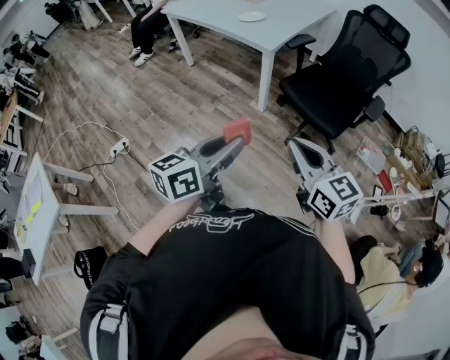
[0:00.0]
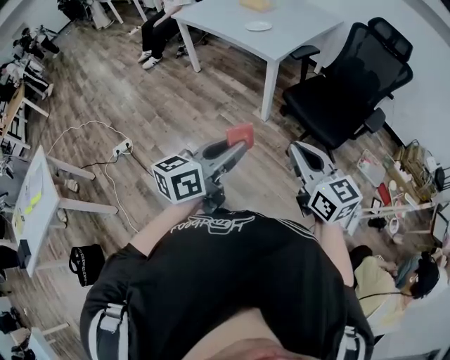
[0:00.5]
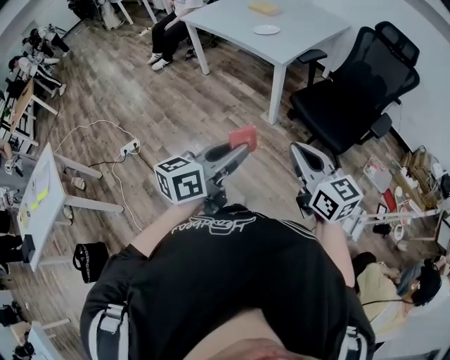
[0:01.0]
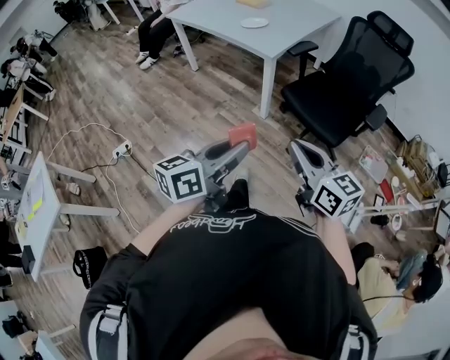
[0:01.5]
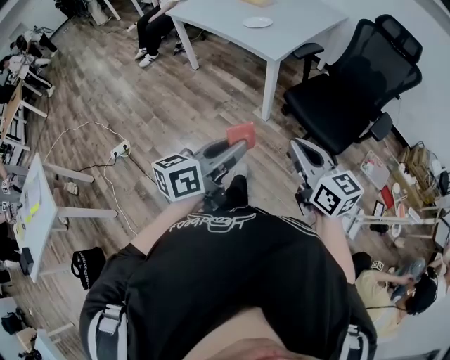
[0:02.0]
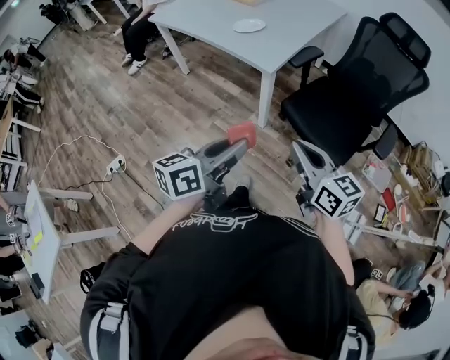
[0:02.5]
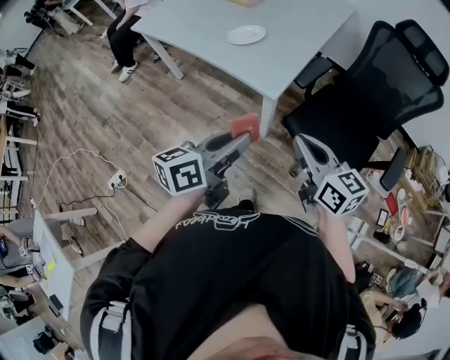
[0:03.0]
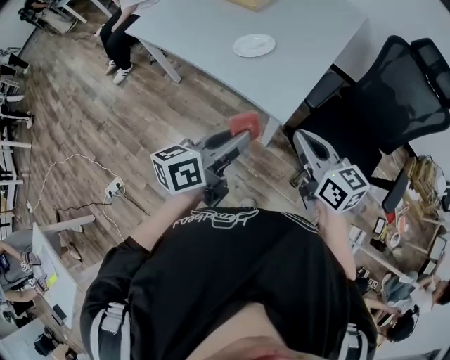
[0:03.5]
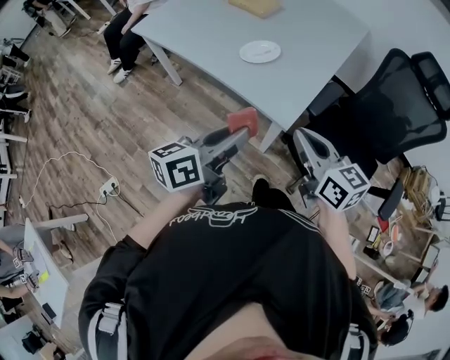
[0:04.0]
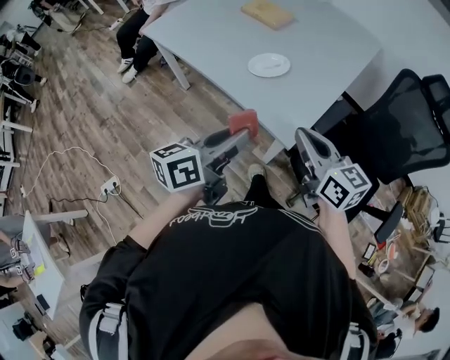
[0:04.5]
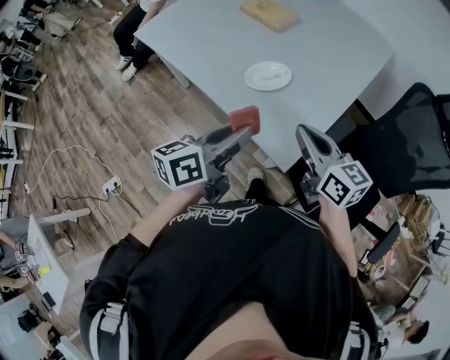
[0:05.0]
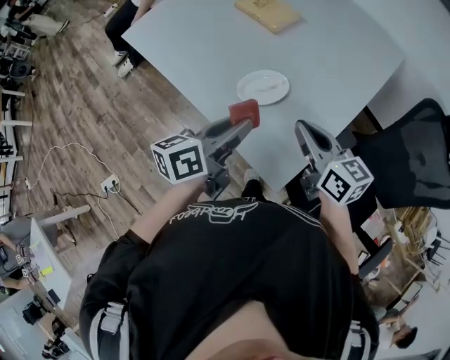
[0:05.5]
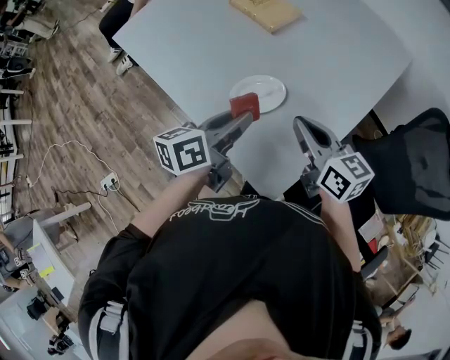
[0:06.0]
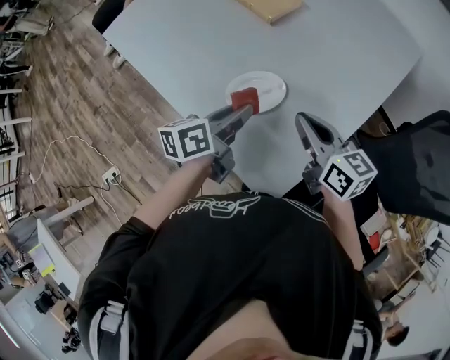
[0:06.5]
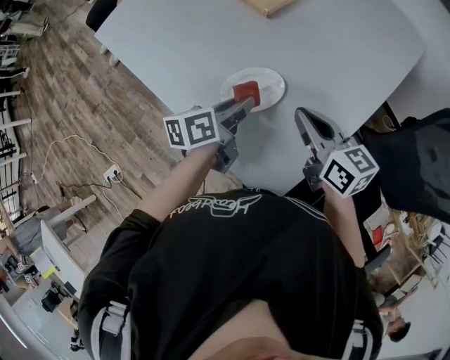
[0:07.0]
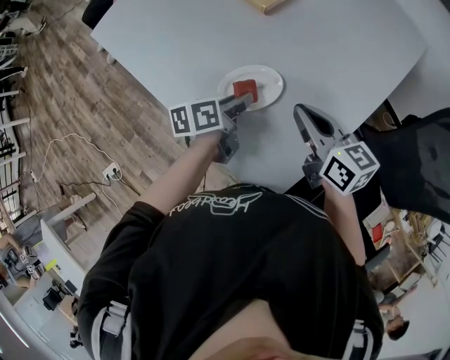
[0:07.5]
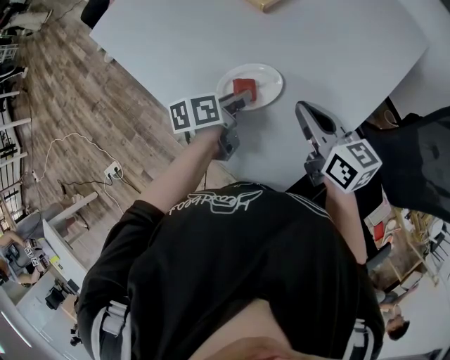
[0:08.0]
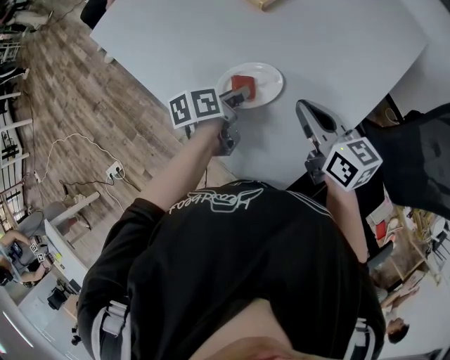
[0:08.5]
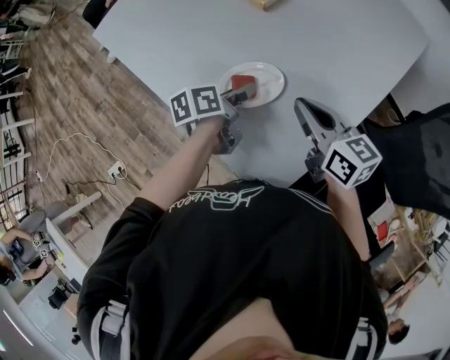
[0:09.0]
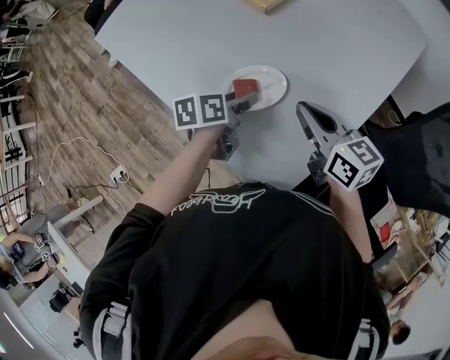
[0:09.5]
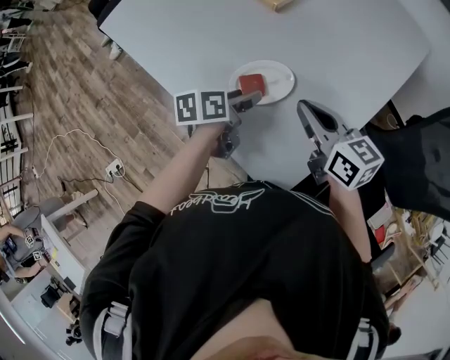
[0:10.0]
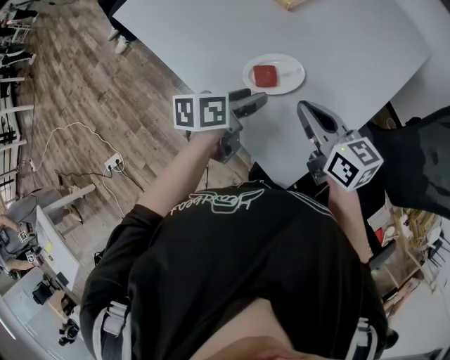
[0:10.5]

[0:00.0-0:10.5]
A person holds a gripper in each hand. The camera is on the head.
0:00.0 to 0:02.0: The grippers both shift forward by roughly 5 cm.
0:02.0 to 0:04.0: The two grippers travel together, forward, about 50 cm.
0:04.0 to 0:06.5: The two grippers go some 35 cm forward. The left gripper turns by approximately 20 degrees.
0:06.5 to 0:08.5: The left gripper goes approximately 10 cm downward and forward, and swivels about 20 degrees.
0:08.5 to 0:10.5: The left gripper is displaced upward and backward by about 10 cm, and opens, while the right gripper shifts roughly 5 cm to the left.

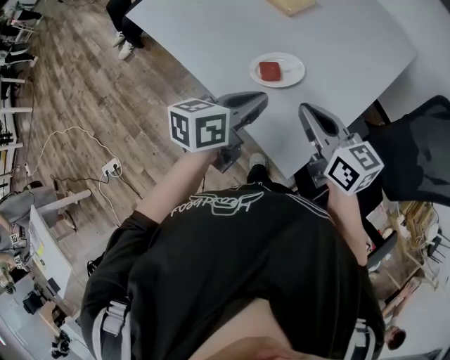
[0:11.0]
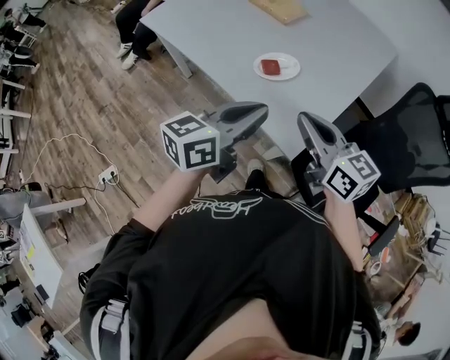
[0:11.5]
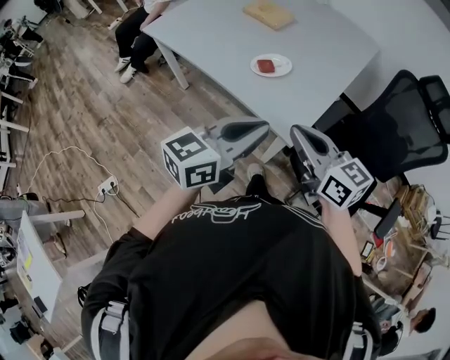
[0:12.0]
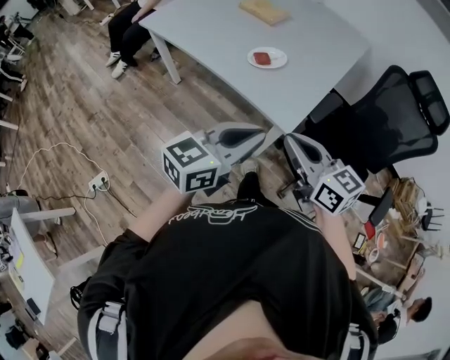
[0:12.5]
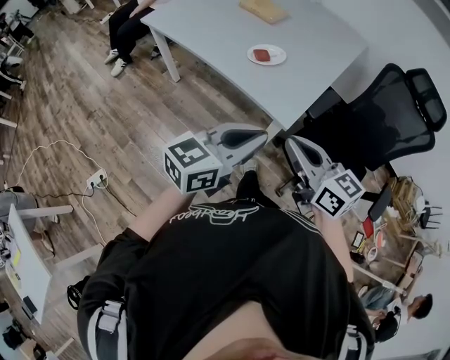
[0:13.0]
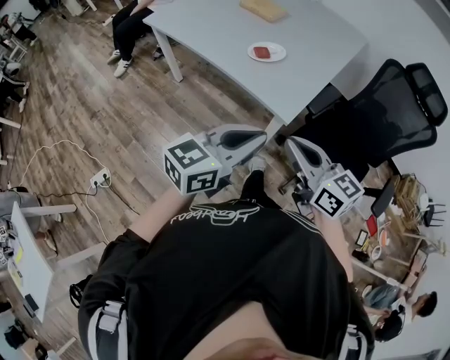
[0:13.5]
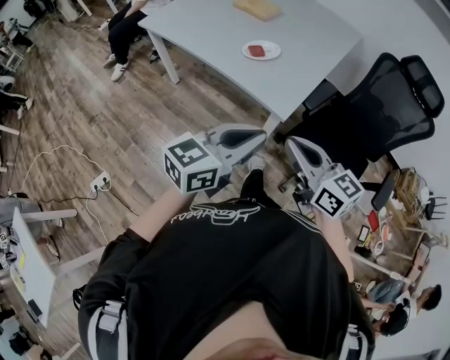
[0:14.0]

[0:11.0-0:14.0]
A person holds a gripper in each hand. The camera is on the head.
0:11.0 to 0:12.5: The two grippers go about 30 cm backward. The left gripper turns by approximately 30 degrees.
0:12.5 to 0:14.0: The grippers both shift backward by some 5 cm.

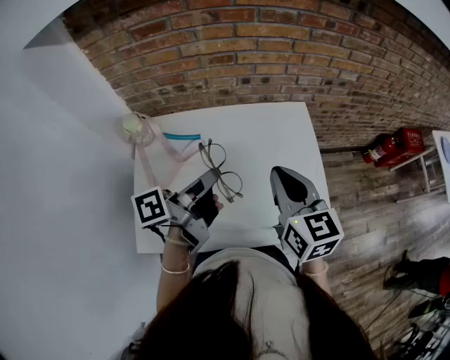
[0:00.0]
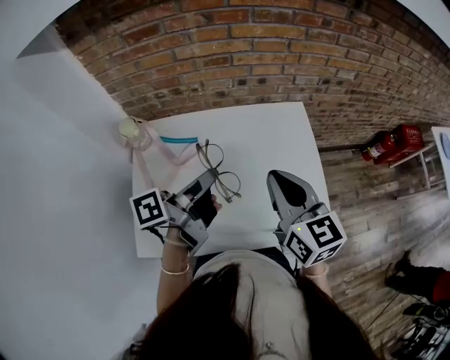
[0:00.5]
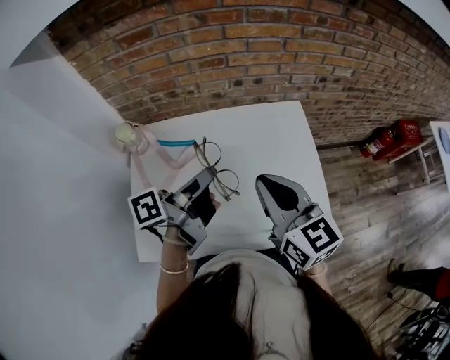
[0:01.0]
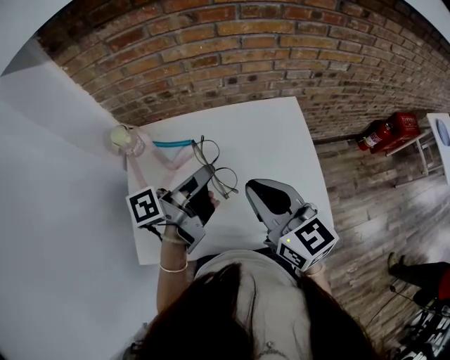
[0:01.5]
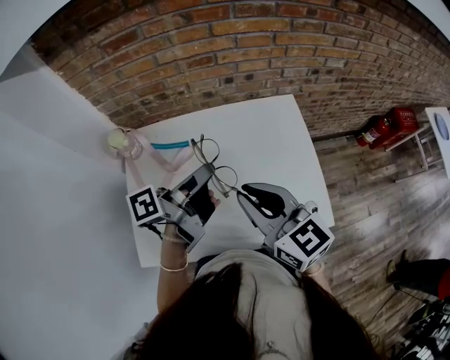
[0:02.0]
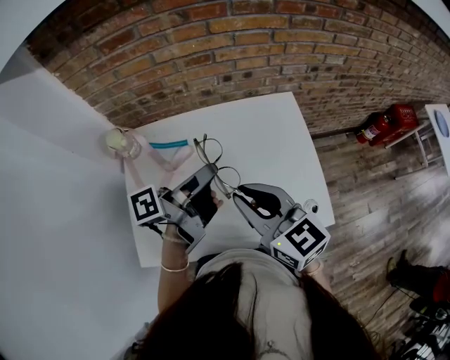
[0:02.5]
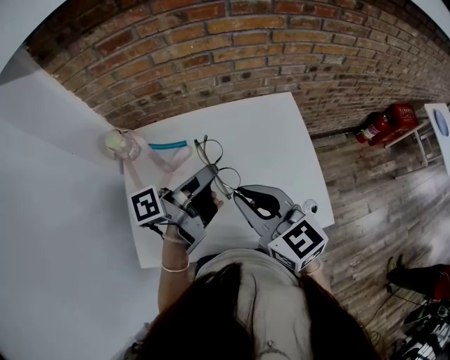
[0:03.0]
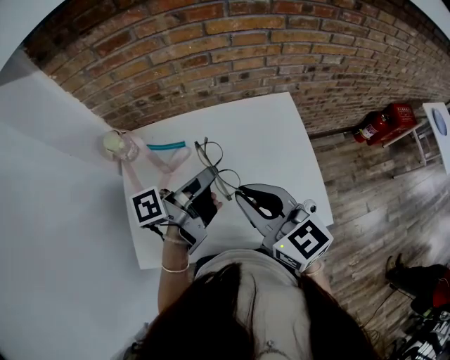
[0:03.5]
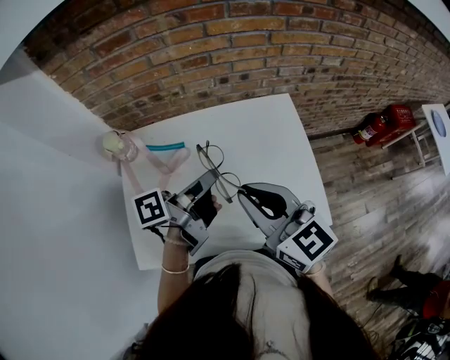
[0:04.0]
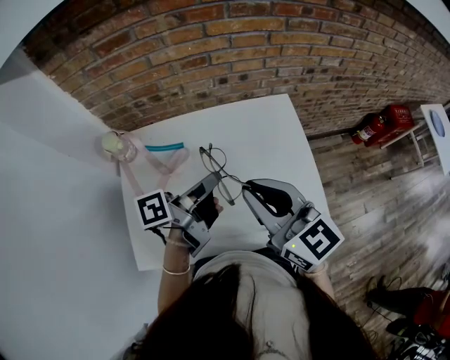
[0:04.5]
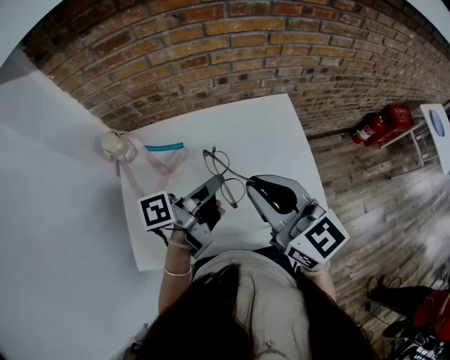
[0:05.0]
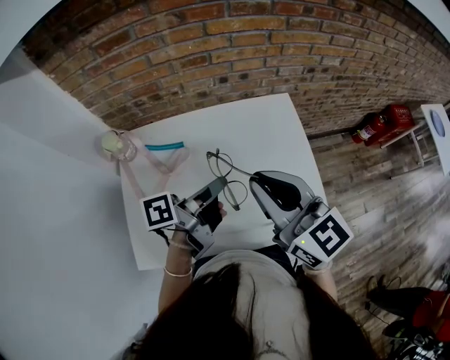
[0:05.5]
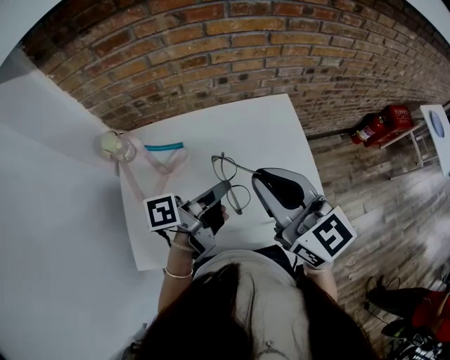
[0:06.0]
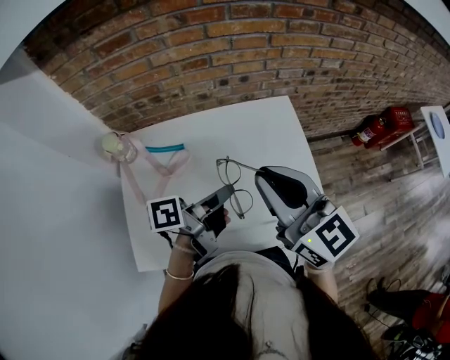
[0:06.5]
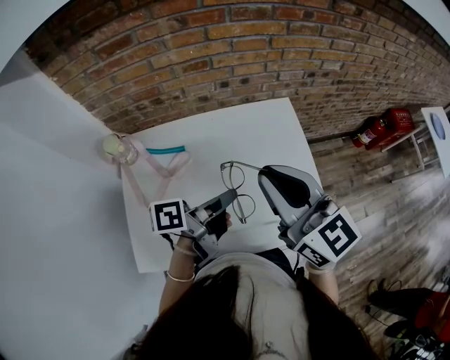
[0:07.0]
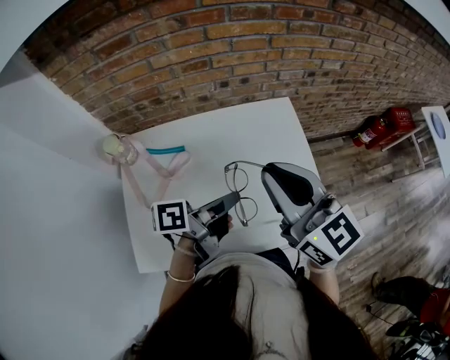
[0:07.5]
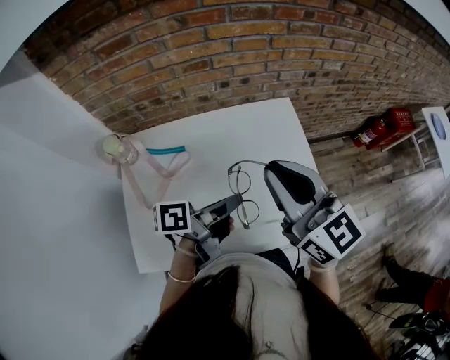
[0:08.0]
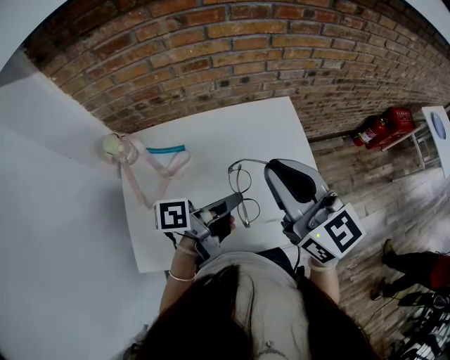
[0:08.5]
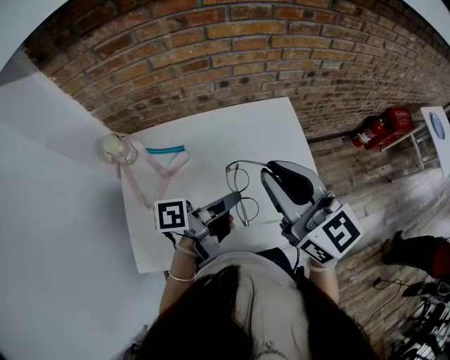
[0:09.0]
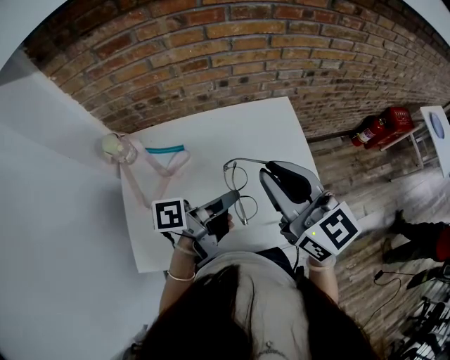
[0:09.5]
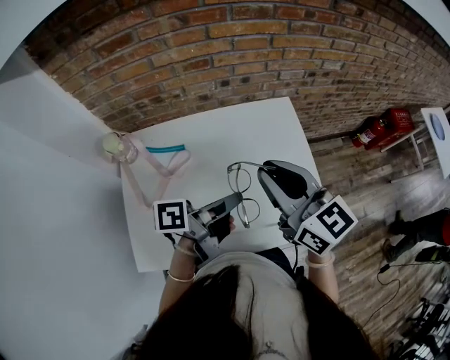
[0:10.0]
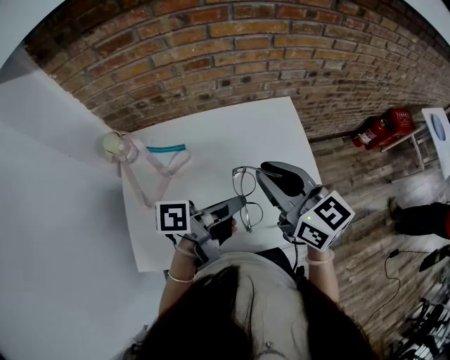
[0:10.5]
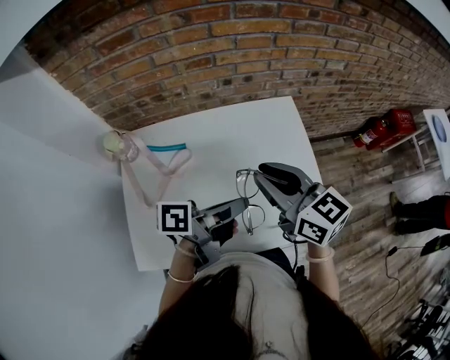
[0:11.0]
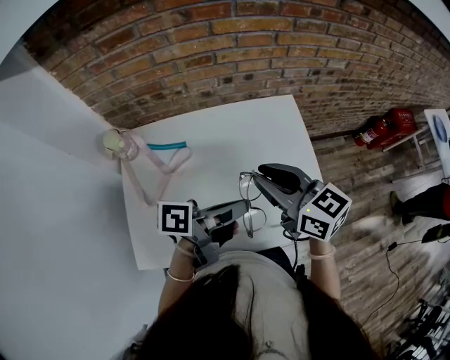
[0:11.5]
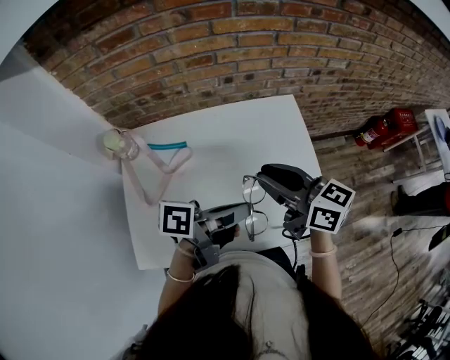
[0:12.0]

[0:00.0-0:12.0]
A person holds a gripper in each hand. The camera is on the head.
0:00.0 to 0:02.0: The right gripper ends up roughly 5 cm from where it was.
0:04.0 to 0:06.0: The right gripper changes place by roughly 5 cm.
0:10.0 to 0:12.0: The right gripper travels downward by roughly 5 cm, and changes its angle by roughly 20 degrees.

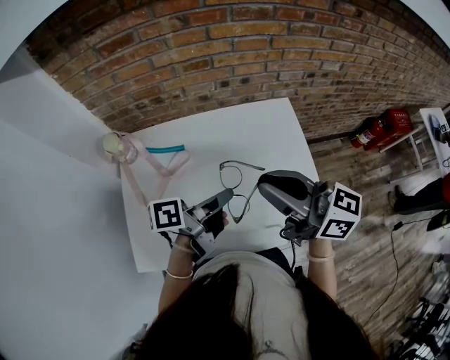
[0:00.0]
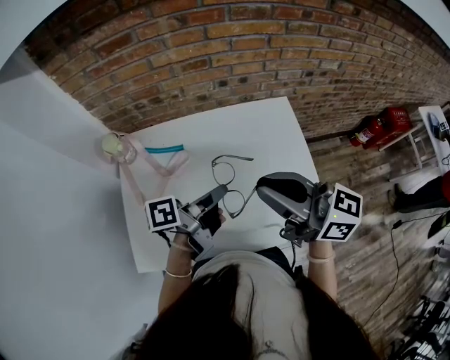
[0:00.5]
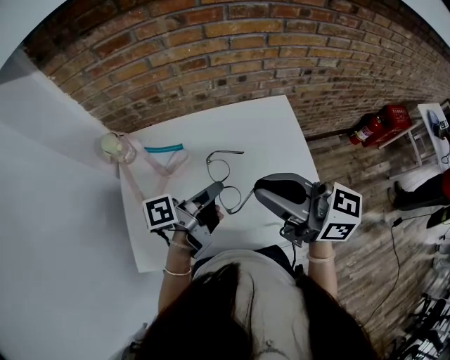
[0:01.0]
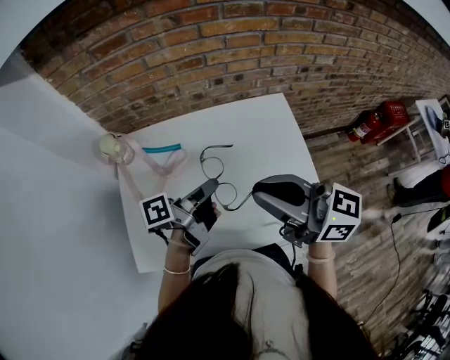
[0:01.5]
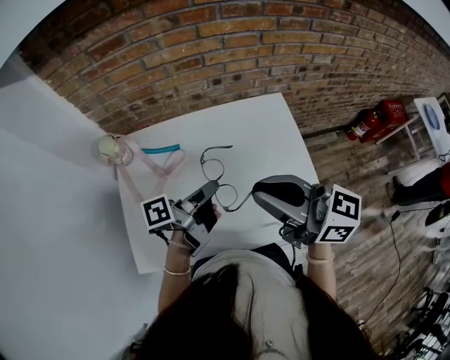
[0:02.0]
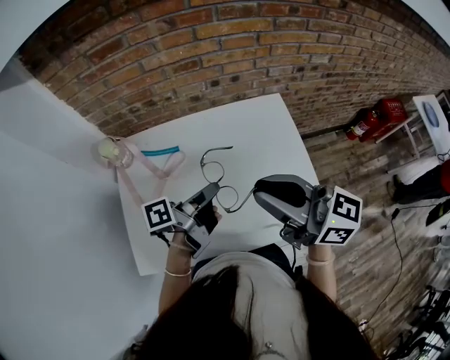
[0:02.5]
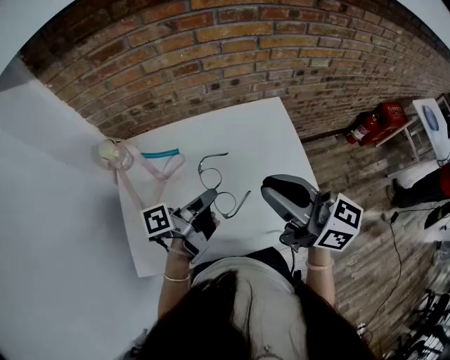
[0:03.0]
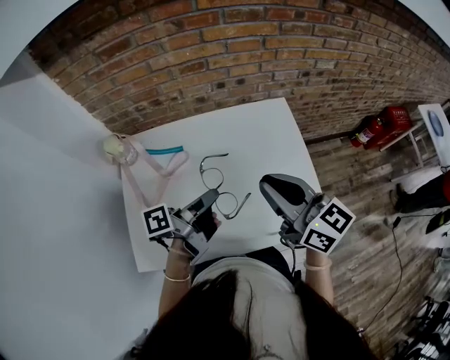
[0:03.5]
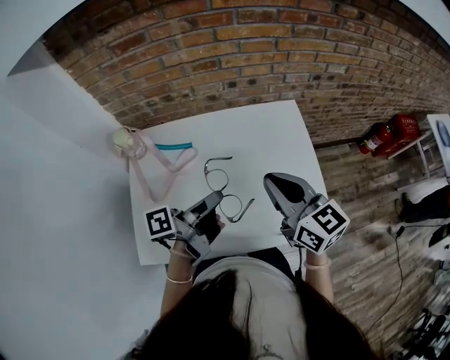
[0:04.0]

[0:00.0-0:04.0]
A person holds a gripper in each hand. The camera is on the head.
0:02.0 to 0:04.0: The right gripper is displaced downward by roughly 5 cm, and changes its angle by about 30 degrees.
